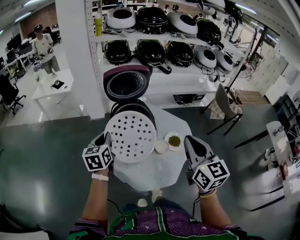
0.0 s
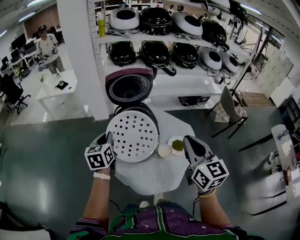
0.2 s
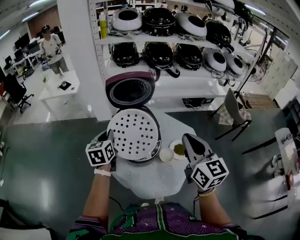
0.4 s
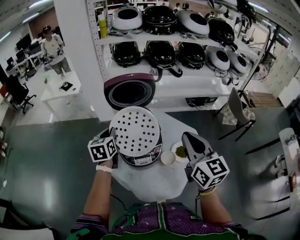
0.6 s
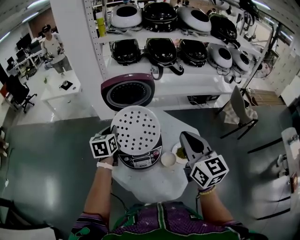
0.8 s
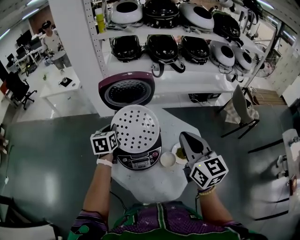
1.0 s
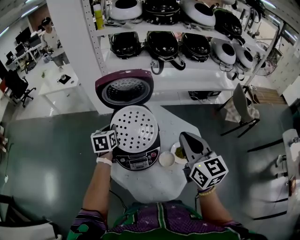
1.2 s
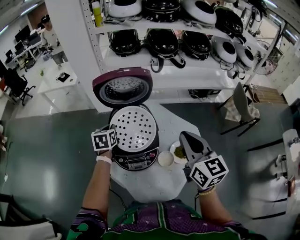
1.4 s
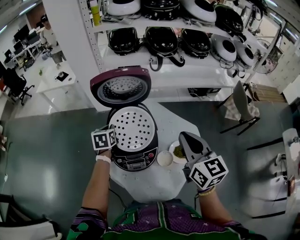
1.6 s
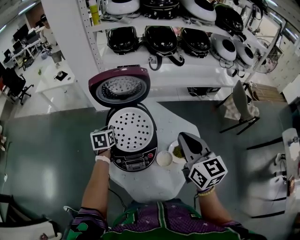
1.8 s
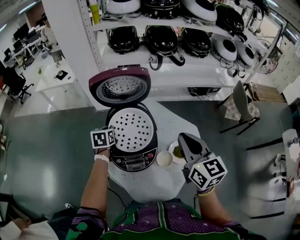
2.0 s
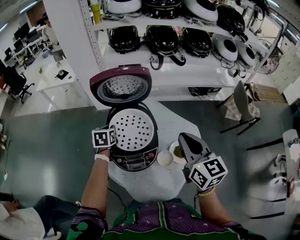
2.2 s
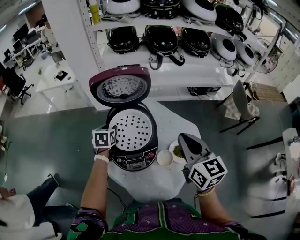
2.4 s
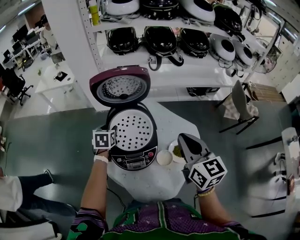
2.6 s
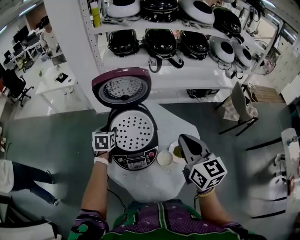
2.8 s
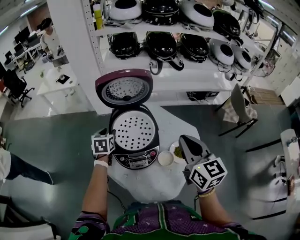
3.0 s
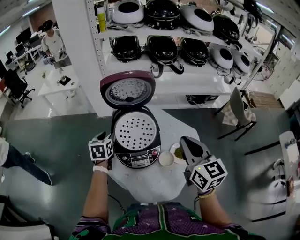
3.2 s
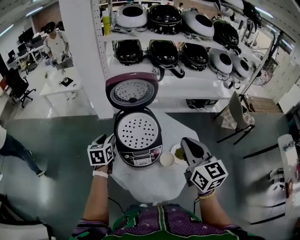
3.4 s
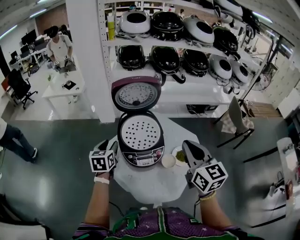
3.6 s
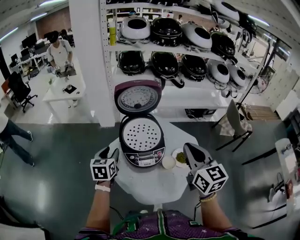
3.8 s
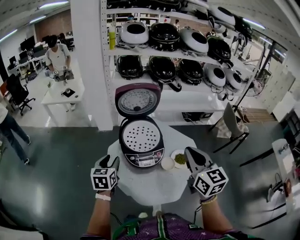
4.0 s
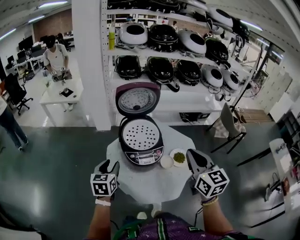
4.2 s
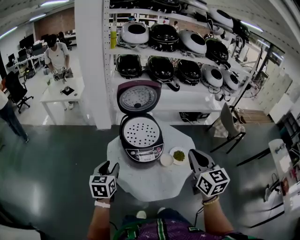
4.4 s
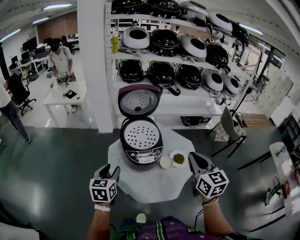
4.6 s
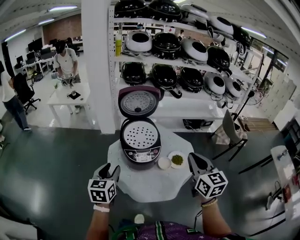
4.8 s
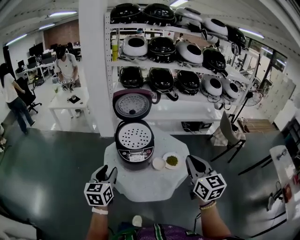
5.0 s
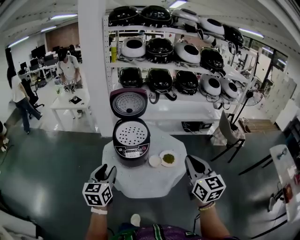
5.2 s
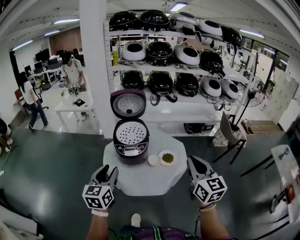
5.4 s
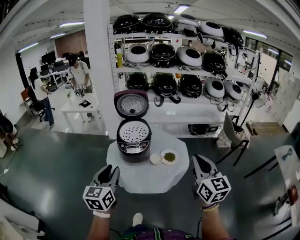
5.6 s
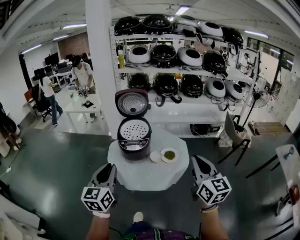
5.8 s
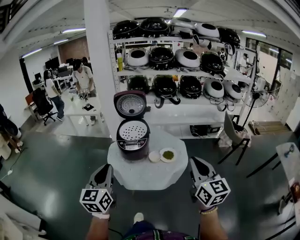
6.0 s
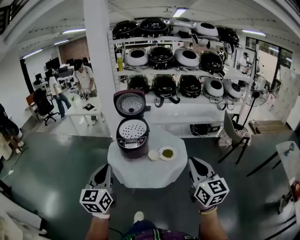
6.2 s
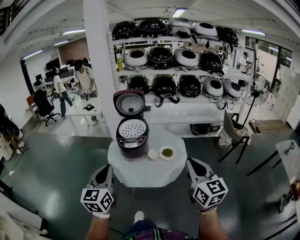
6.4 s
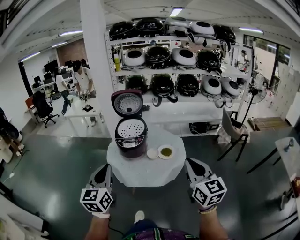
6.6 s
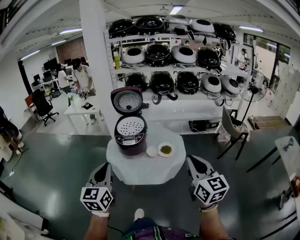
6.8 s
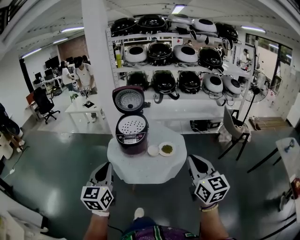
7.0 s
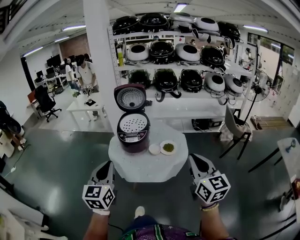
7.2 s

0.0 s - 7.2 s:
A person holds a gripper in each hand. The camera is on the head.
0.0 s - 1.4 s: The right gripper travels forward by approximately 15 cm. Meanwhile the left gripper goes approximately 20 cm forward and downward.
1.4 s - 2.8 s: The left gripper opens its fingers.
2.8 s - 4.4 s: The left gripper shifts approximately 25 cm backward. The right gripper moves backward, some 15 cm.
4.4 s - 5.8 s: The left gripper is displaced backward, to the right and upward by about 35 cm, and swivels some 30 degrees. The right gripper is displaced backward and to the right by approximately 25 cm.
5.8 s - 7.2 s: Both grippers move backward, roughly 5 cm.

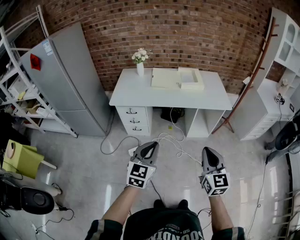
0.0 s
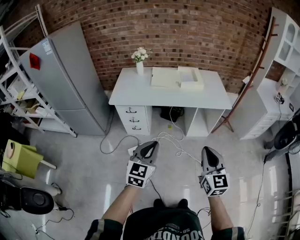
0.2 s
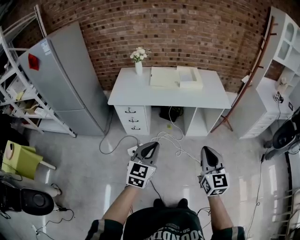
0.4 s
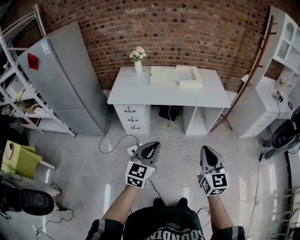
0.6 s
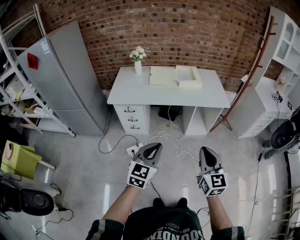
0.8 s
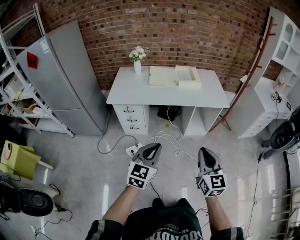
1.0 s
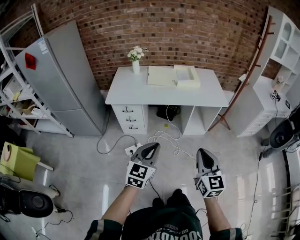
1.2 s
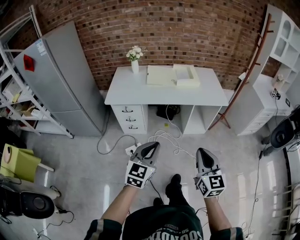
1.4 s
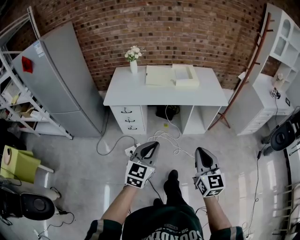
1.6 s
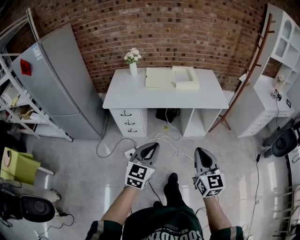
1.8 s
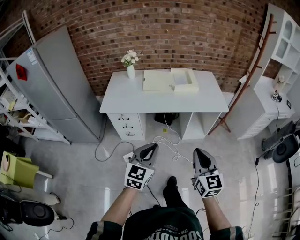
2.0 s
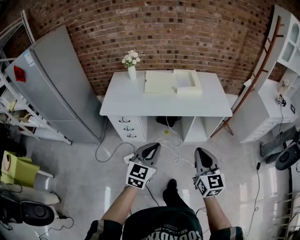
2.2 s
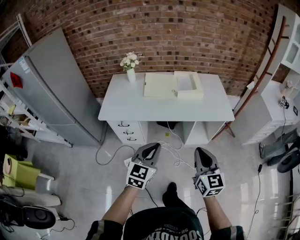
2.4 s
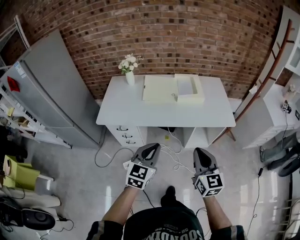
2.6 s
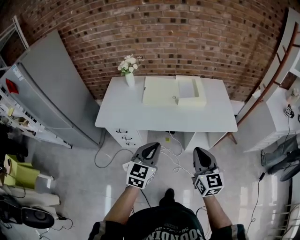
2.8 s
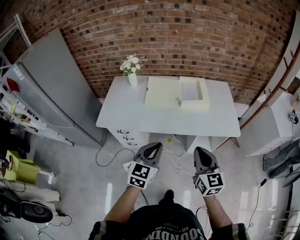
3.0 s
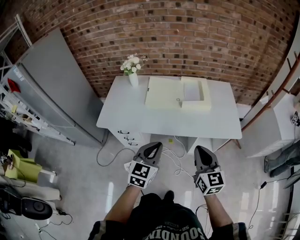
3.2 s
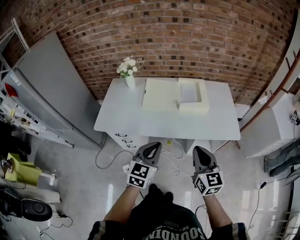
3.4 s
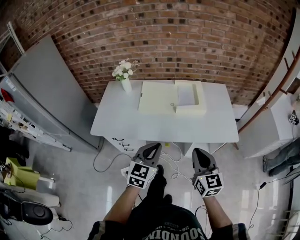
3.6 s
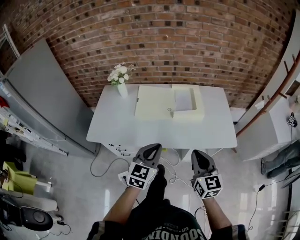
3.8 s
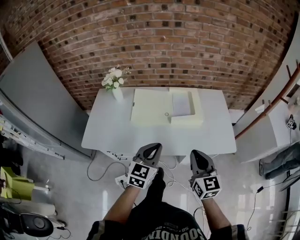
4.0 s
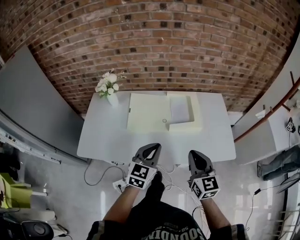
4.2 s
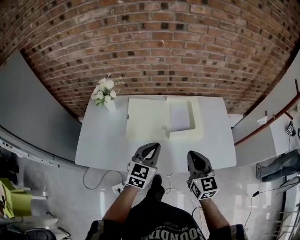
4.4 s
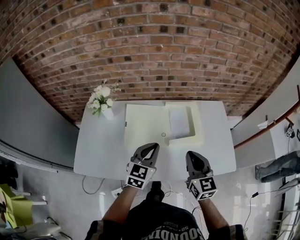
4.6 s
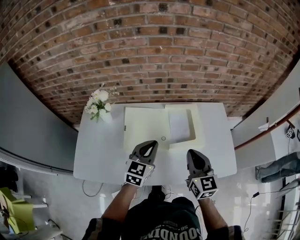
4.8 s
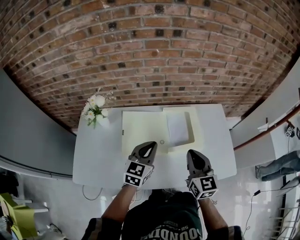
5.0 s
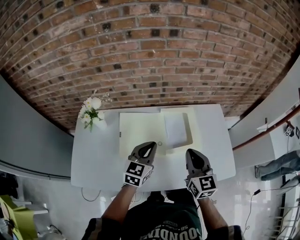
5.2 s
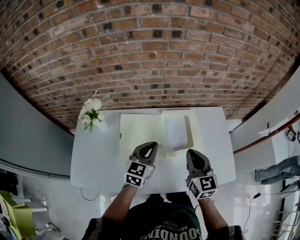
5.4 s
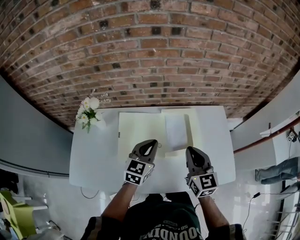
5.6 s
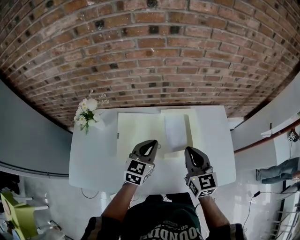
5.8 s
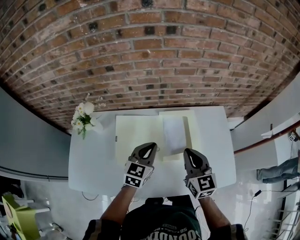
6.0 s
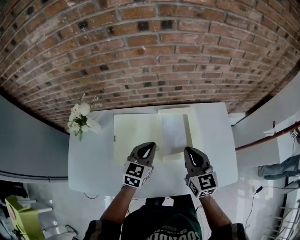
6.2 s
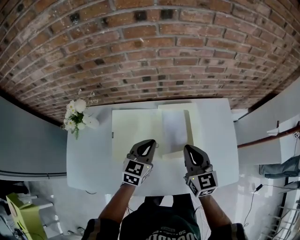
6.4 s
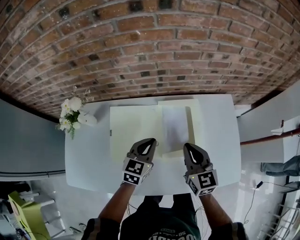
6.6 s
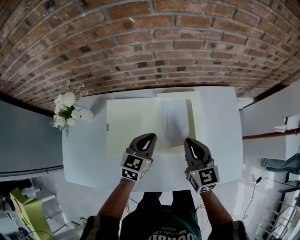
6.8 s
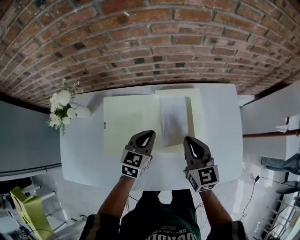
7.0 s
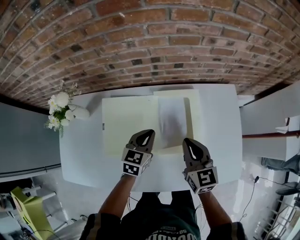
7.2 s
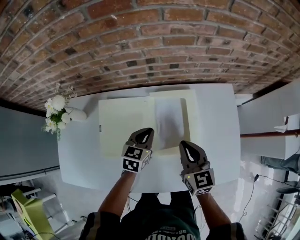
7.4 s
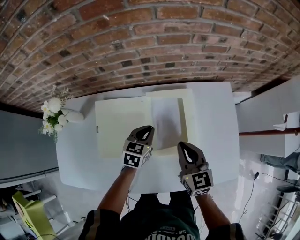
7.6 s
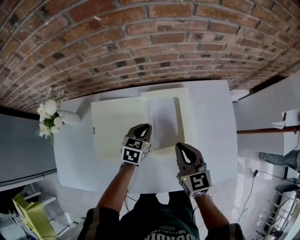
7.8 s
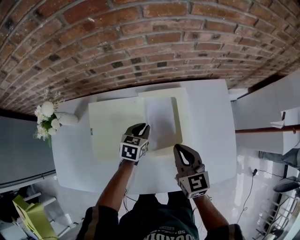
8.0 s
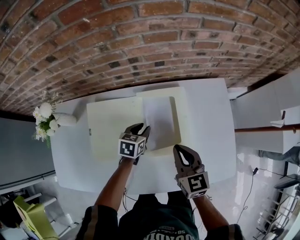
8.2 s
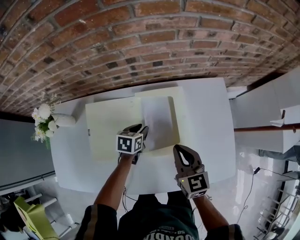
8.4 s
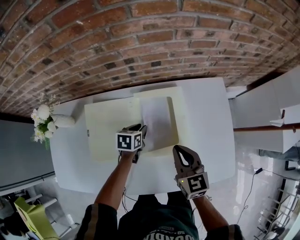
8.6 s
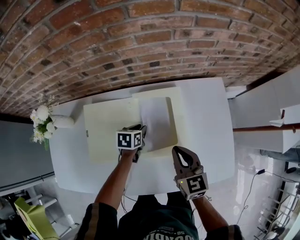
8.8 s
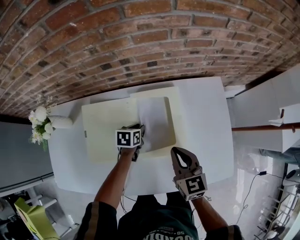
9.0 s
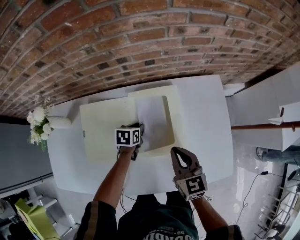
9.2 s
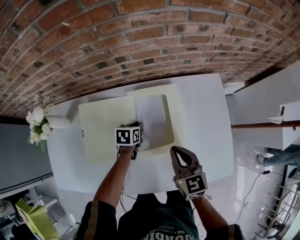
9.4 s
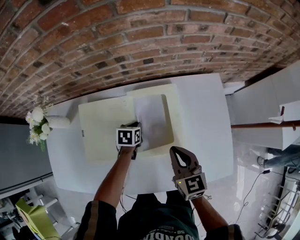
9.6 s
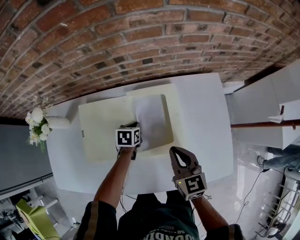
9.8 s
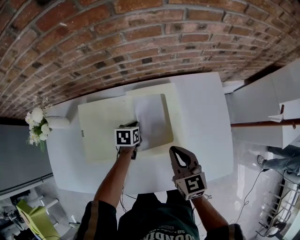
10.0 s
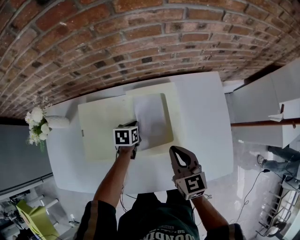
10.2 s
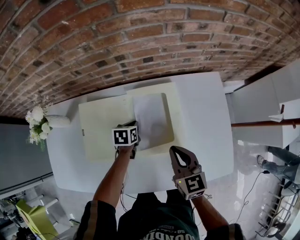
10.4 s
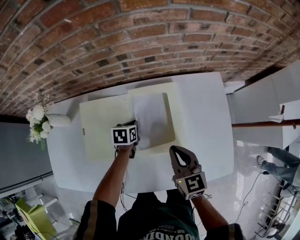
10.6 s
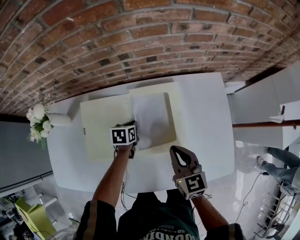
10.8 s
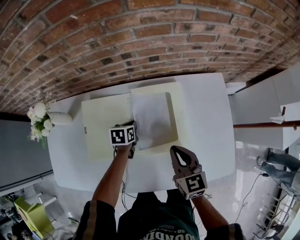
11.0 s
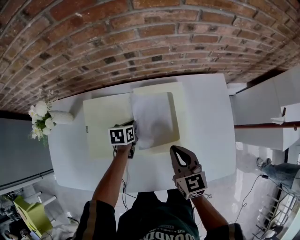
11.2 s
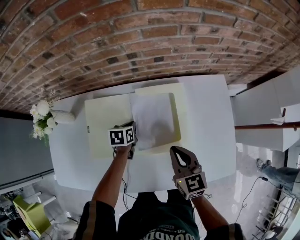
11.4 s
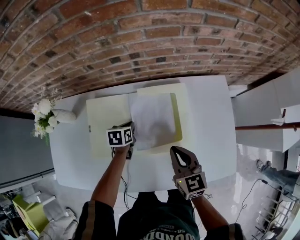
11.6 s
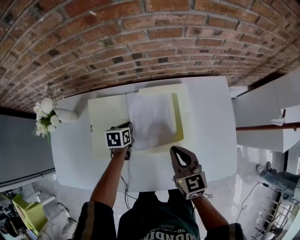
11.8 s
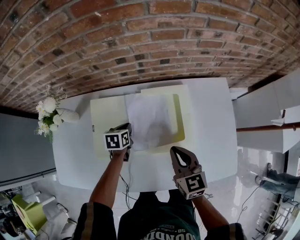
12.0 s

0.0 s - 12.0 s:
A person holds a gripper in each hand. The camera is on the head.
0.0 s - 1.6 s: The grippers move only a little.
1.6 s - 3.0 s: Both grippers move forward, some 30 cm.
3.0 s - 4.4 s: Both grippers travel together forward, approximately 30 cm.
4.4 s - 6.0 s: The grippers both shift forward by about 20 cm.
6.0 s - 7.6 s: Both grippers travel together downward and forward, about 15 cm. The left gripper swivels roughly 20 degrees.
7.6 s - 9.0 s: The left gripper is displaced downward by about 10 cm, turns by some 30 degrees, and opens its fingers.
9.0 s - 10.4 s: The left gripper closes its fingers.
10.4 s - 12.0 s: The left gripper moves to the left, some 10 cm, while the right gripper heads to the left, covering approximately 5 cm.

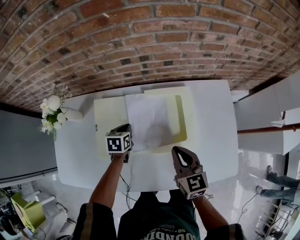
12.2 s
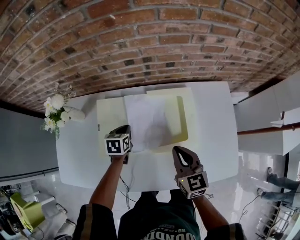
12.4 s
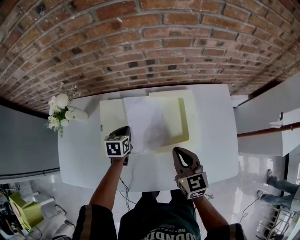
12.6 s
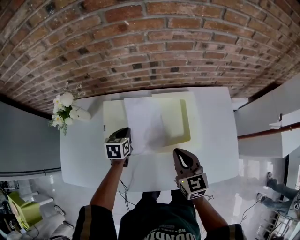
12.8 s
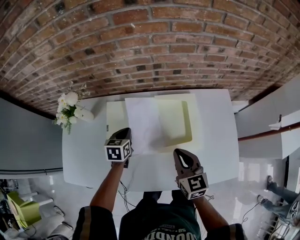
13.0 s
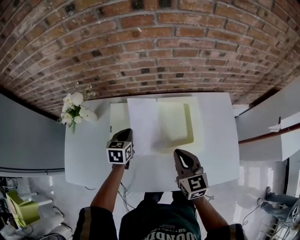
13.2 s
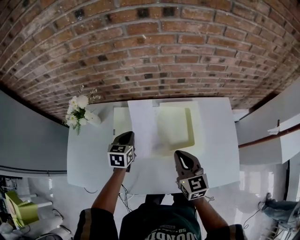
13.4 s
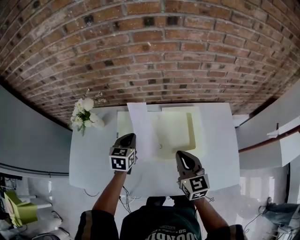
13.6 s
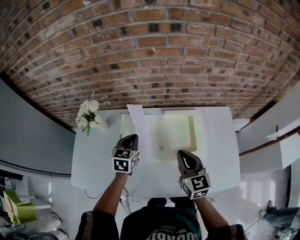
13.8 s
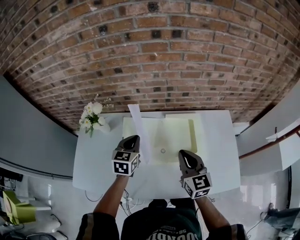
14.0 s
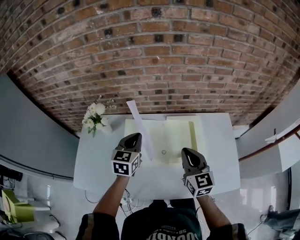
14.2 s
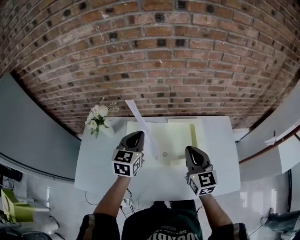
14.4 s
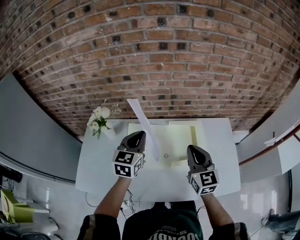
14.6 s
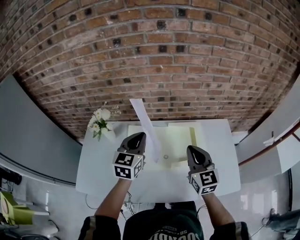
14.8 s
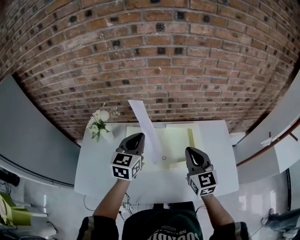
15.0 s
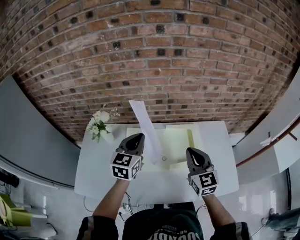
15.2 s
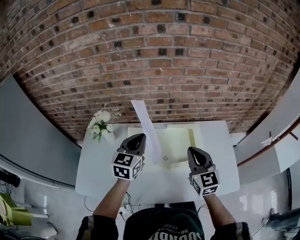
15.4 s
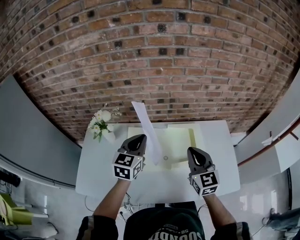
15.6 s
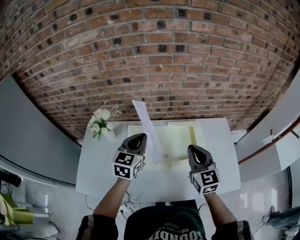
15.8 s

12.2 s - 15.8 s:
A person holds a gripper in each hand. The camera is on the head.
12.2 s - 14.0 s: The right gripper goes approximately 10 cm upward and to the left, while the left gripper shifts roughly 20 cm upward, and rotates approximately 30 degrees.
14.0 s - 15.8 s: The right gripper heads upward, covering roughly 5 cm. Meanwhile the left gripper moves upward, approximately 10 cm.

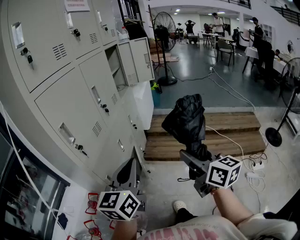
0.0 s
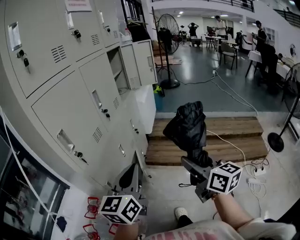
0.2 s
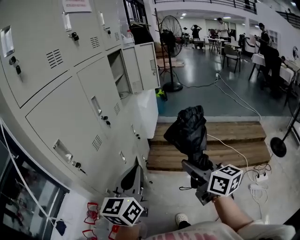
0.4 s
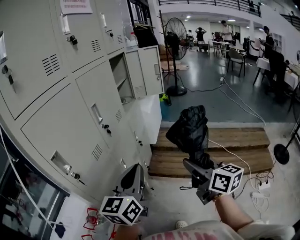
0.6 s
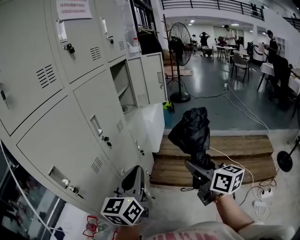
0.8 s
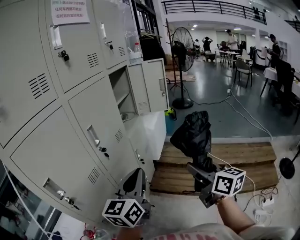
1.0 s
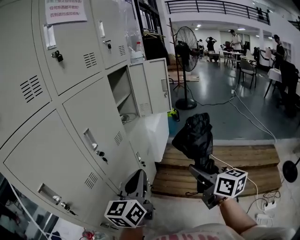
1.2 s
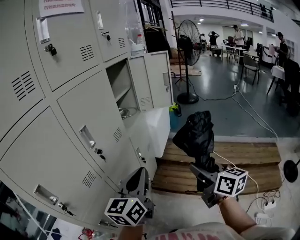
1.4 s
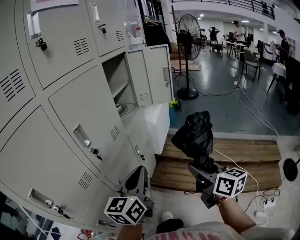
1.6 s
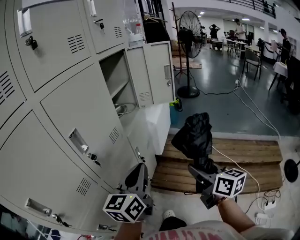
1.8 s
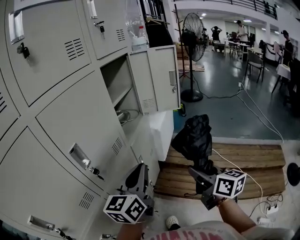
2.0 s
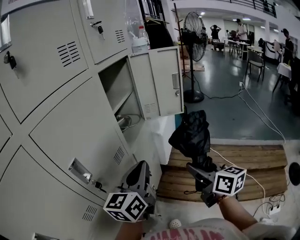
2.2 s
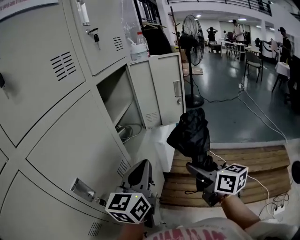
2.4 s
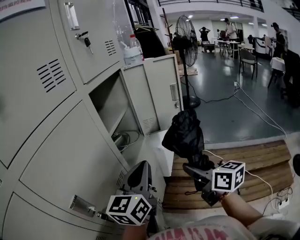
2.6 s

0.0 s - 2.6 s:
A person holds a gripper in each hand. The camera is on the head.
0.0 s - 1.2 s: Both grippers travel together forward, some 25 cm.
1.2 s - 2.6 s: Both grippers move forward, approximately 25 cm.
